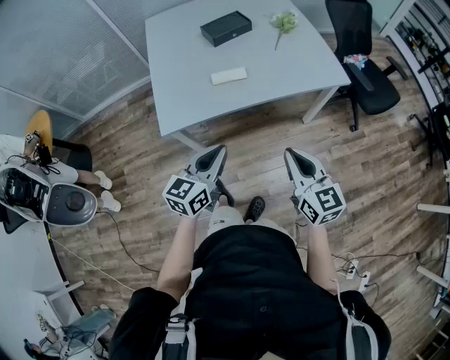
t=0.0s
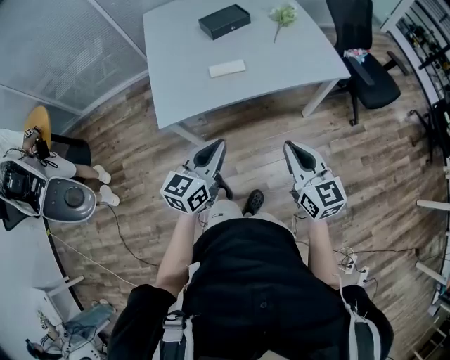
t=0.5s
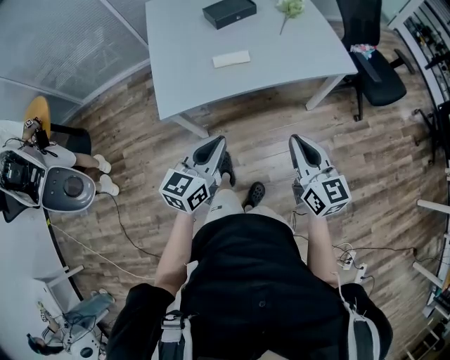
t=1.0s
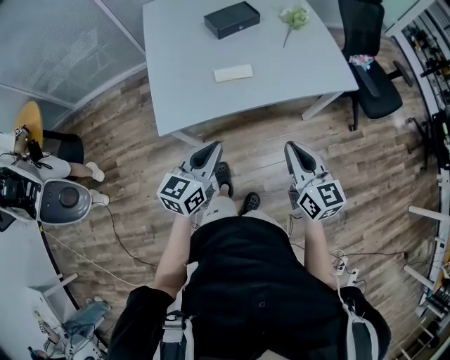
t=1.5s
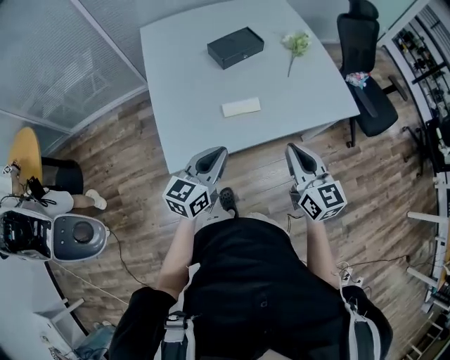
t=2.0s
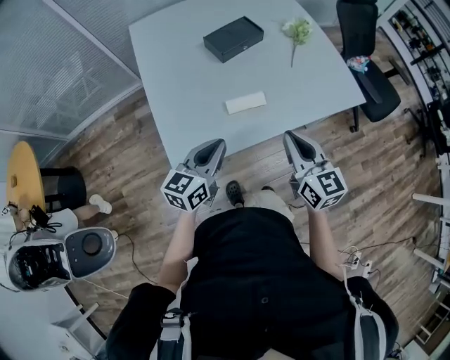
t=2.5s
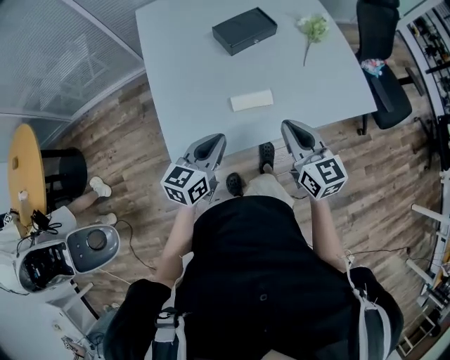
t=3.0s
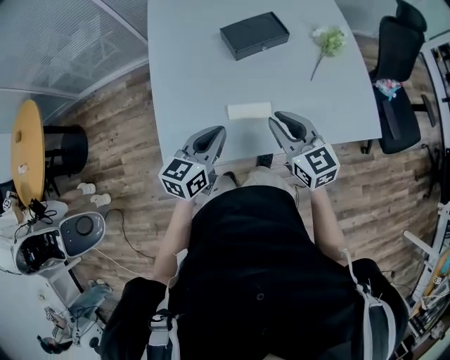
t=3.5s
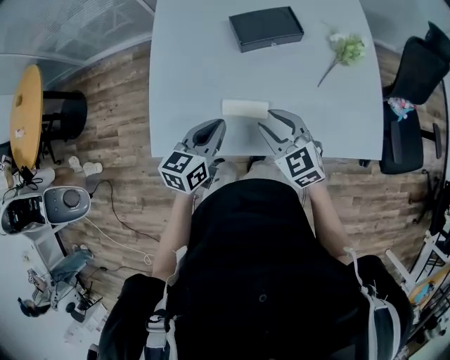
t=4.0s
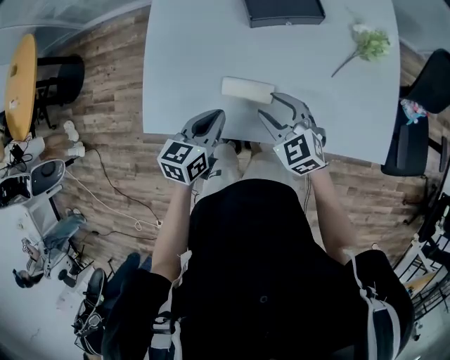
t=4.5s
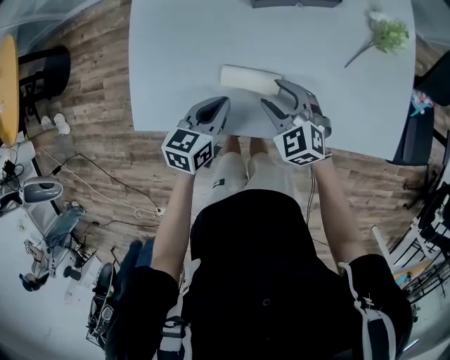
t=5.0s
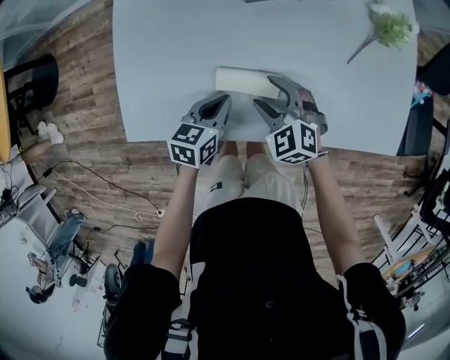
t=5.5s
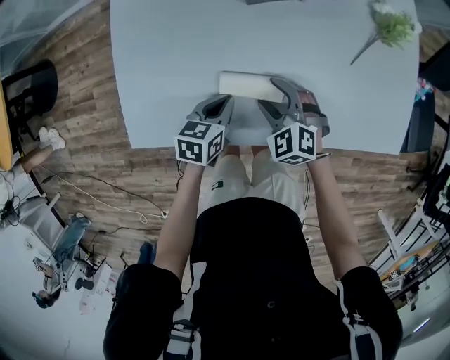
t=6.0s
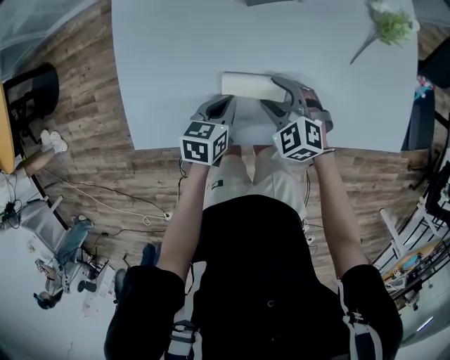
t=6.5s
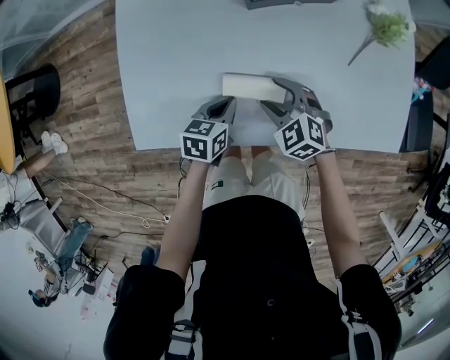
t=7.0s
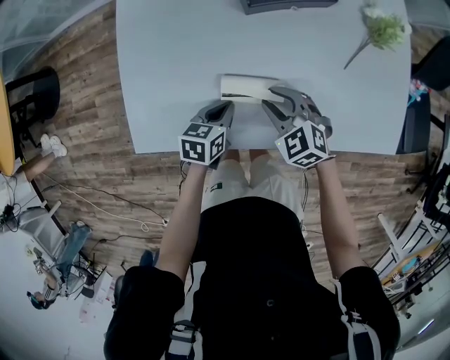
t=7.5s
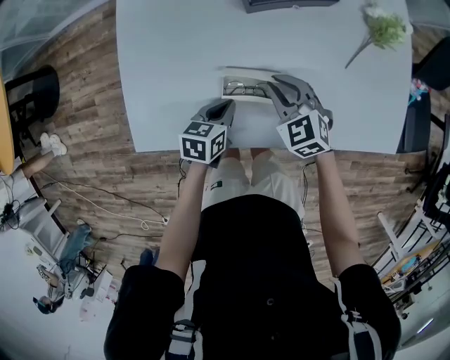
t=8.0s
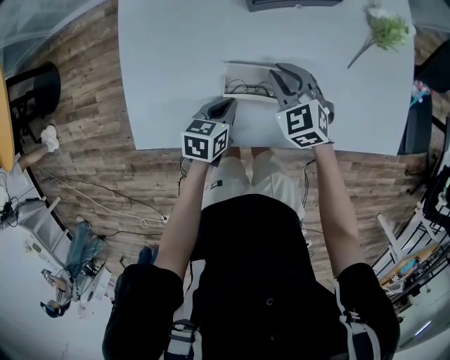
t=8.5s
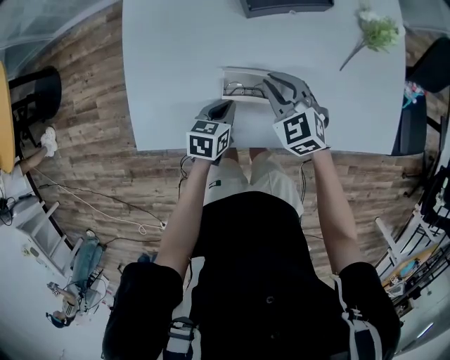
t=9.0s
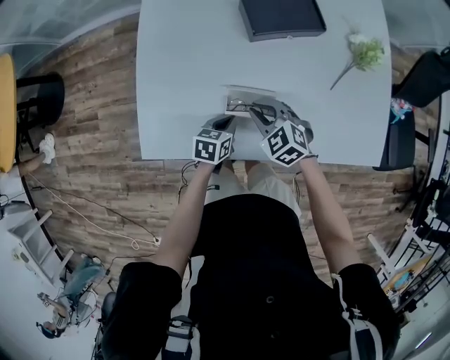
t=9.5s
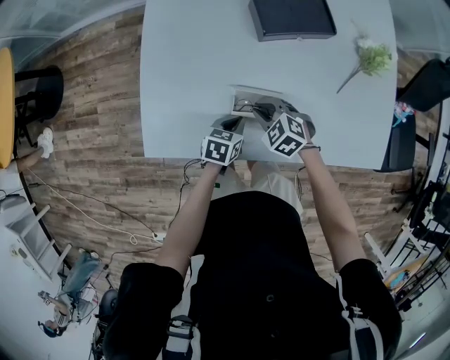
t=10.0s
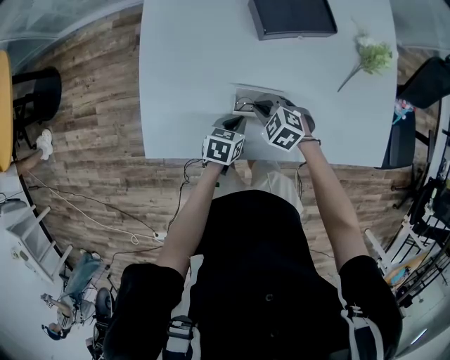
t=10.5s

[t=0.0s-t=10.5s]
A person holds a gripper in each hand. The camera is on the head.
t=0.0s to t=2.0s: The two grippers go some 25 cm forward and to the left.
t=2.0s to t=4.0s: The left gripper changes place by some 25 cm, and swivels roughly 20 degrees; the right gripper moves about 30 cm, swivels some 50 degrees, and opens.
t=4.0s to t=6.5s: Both grippers travel together downward, some 20 cm. The right gripper changes its angle by about 30 degrees, and opens; the left gripper turns by some 20 degrees.
t=6.5s to t=8.5s: The right gripper moves forward, some 5 cm, and closes its fingers.
t=8.5s to t=10.5s: The right gripper moves to the left and backward, about 10 cm, and turns by approximately 30 degrees.

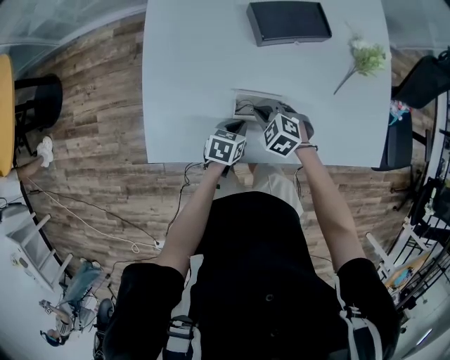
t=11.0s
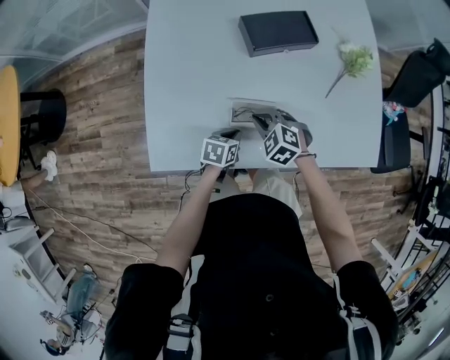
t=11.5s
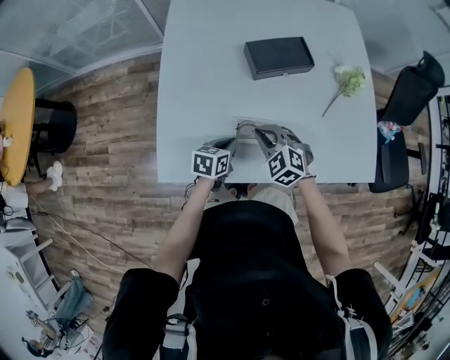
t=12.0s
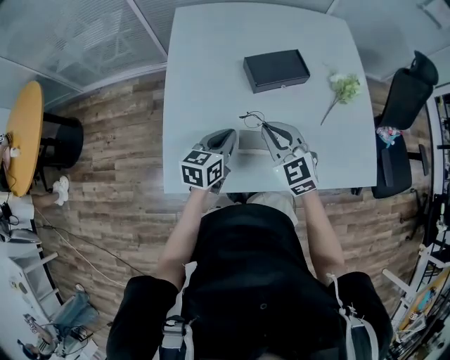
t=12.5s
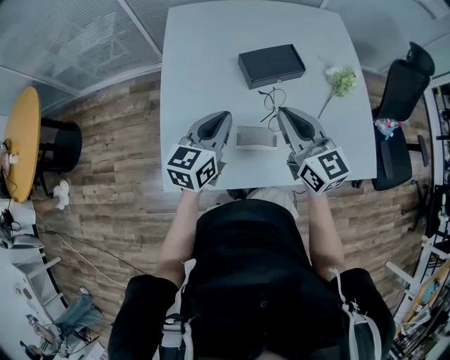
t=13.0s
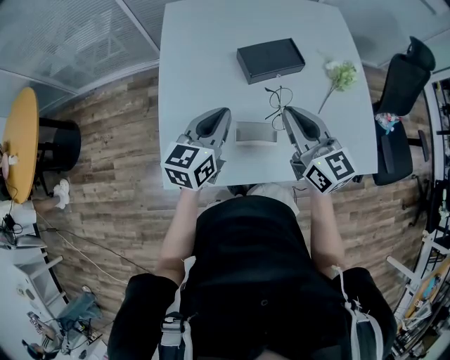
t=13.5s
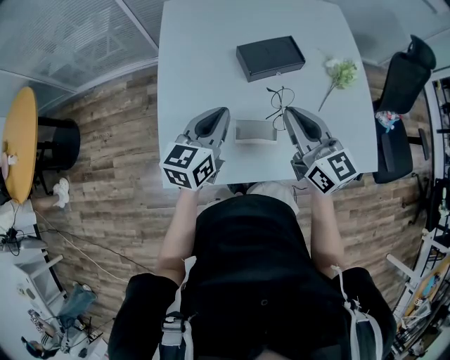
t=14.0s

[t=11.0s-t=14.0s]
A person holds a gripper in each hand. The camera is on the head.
t=11.0s to t=12.5s: The two grippers go some 25 cm upward. The right gripper tips its fingers upward by approximately 40 degrees; the left gripper rotates roughly 30 degrees.
t=12.5s to t=14.0s: The left gripper travels upward by approximately 10 cm, while the right gripper travels upward and to the right by about 10 cm, and changes its angle by some 40 degrees.

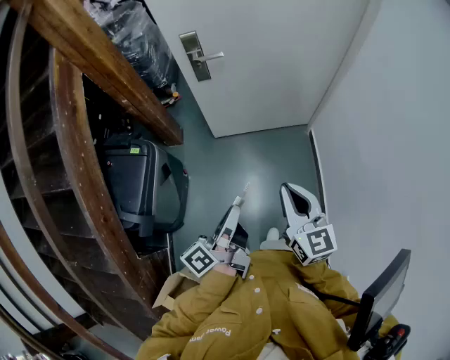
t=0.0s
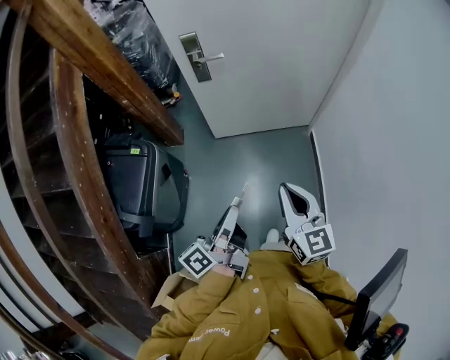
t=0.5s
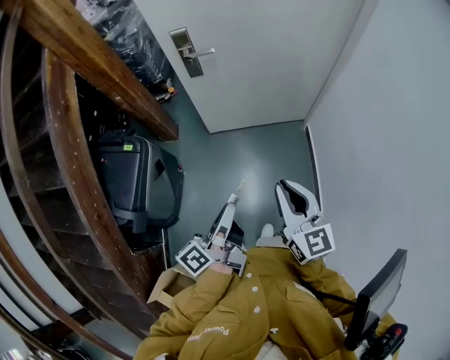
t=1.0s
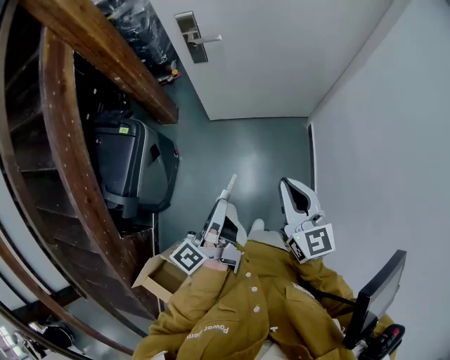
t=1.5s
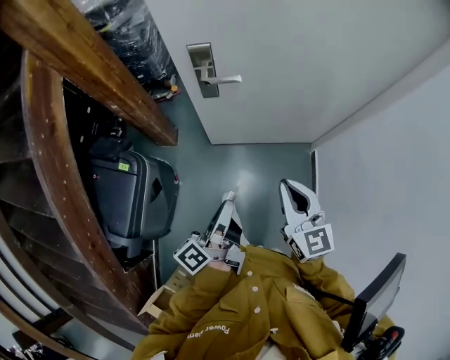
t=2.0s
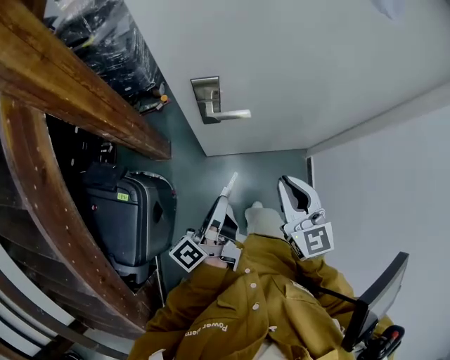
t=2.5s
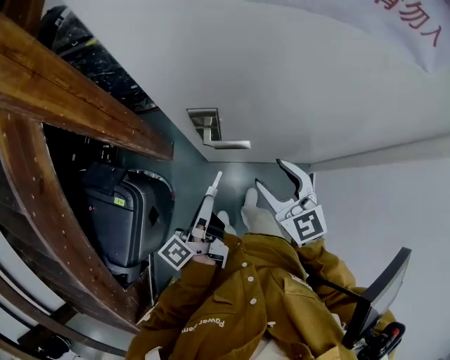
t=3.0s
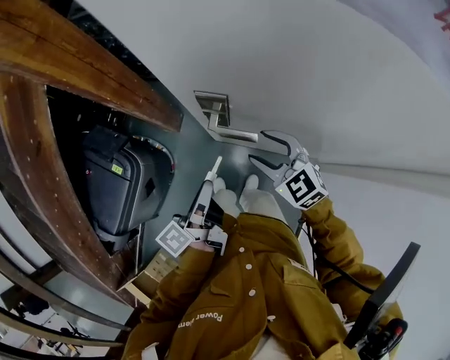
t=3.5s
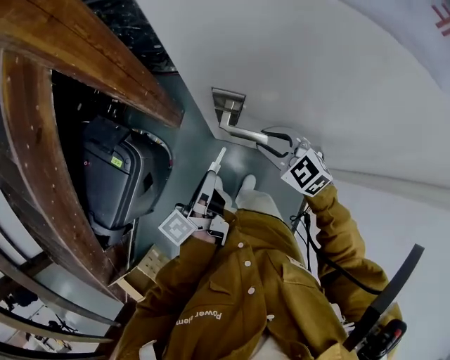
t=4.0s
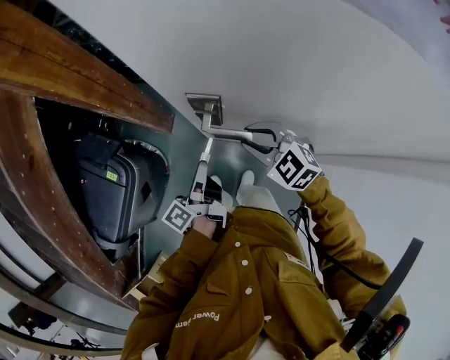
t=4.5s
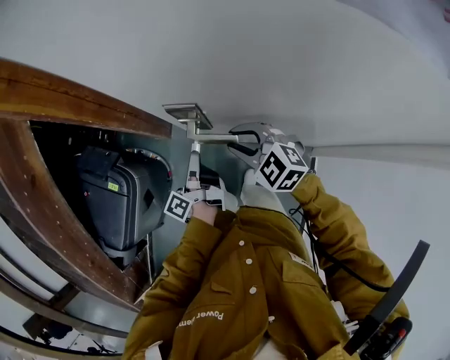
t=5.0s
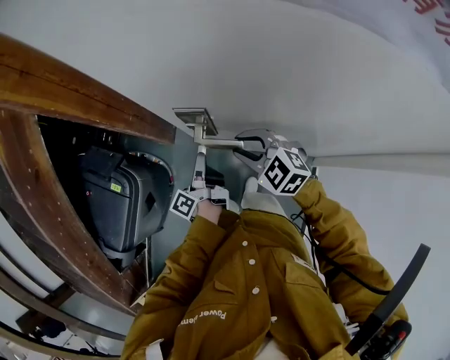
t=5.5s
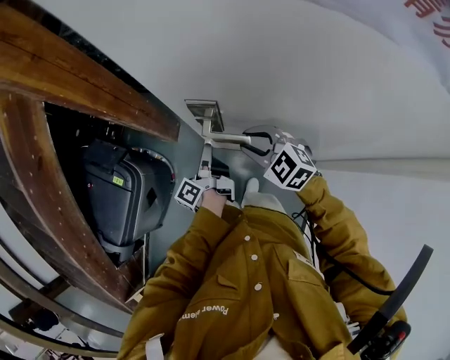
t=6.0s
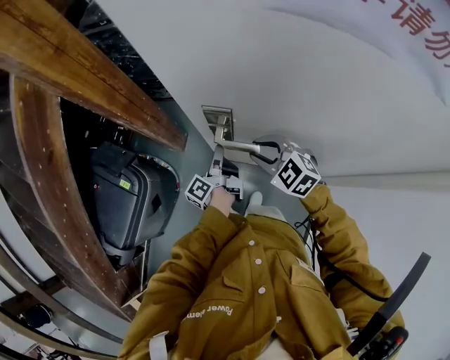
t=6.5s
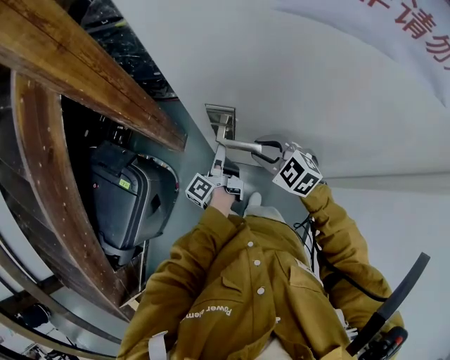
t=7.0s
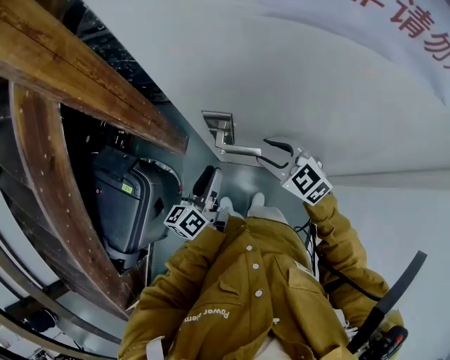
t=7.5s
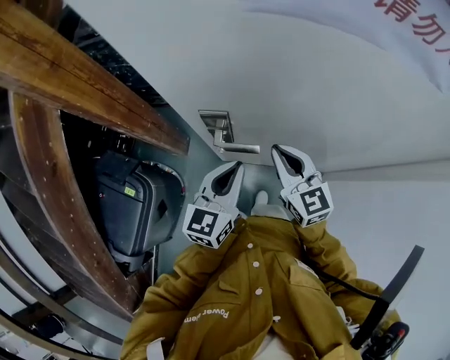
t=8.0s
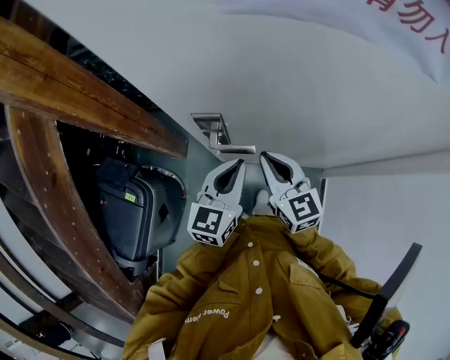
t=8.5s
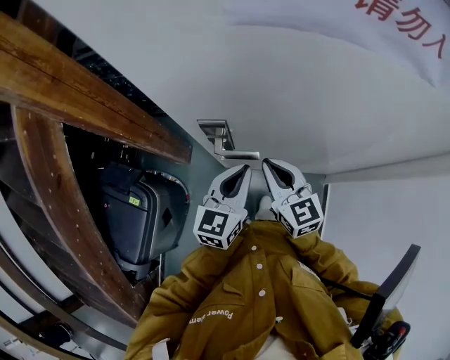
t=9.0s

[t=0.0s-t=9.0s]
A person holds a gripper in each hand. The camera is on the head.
t=0.0s to t=2.0s: The right gripper ends up roughly 25 cm from where it was.
t=2.0s to t=4.5s: The right gripper moves about 35 cm, turns by approximately 60 degrees, and opens its fingers.
t=7.0s to t=9.0s: The right gripper travels upward by some 5 cm, turns by some 50 degrees, and closes its fingers.

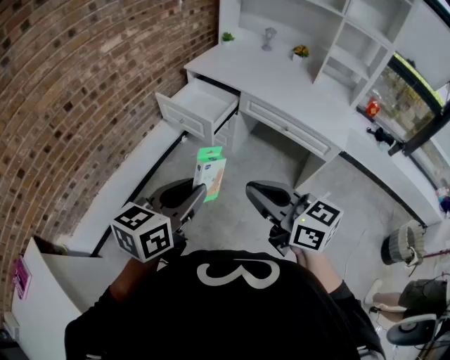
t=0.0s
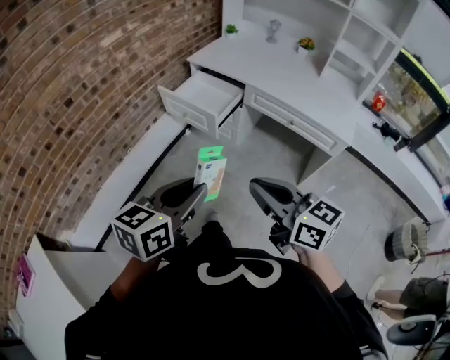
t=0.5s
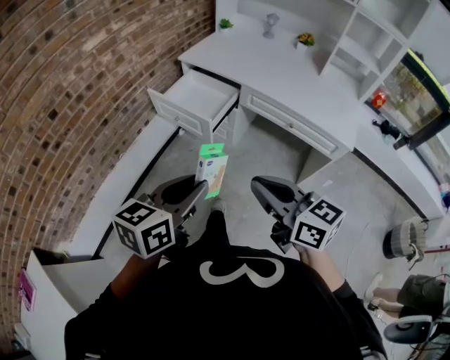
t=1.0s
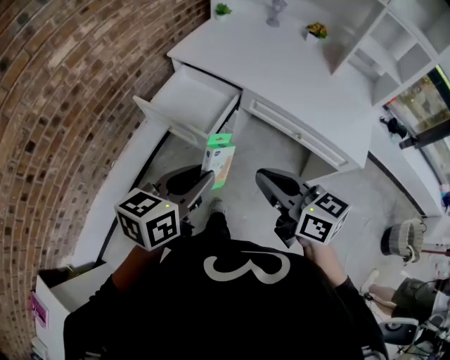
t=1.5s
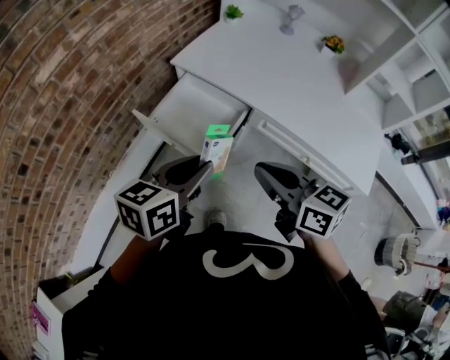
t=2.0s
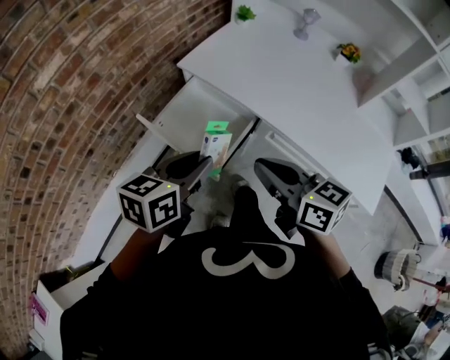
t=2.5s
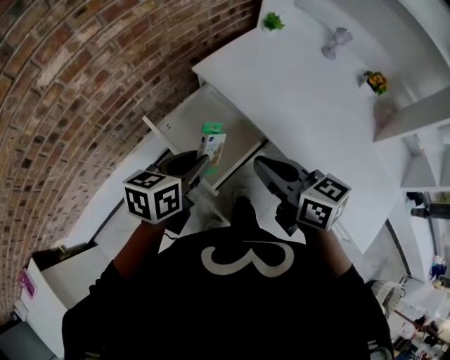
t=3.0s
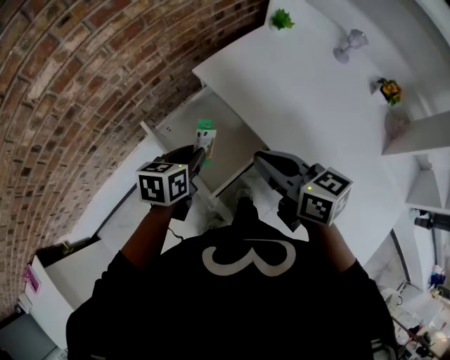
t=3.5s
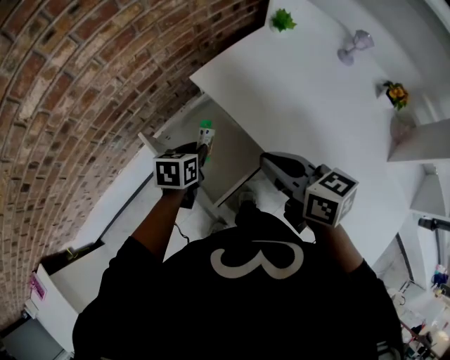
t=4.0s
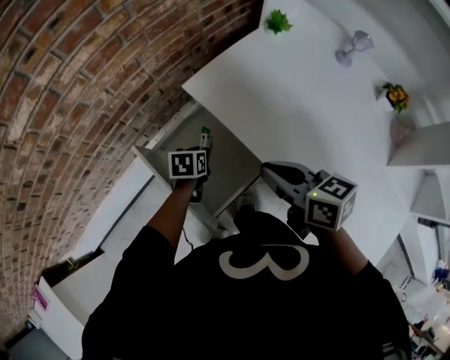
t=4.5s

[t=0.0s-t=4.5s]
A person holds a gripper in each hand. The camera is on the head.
t=0.0s to t=2.0s: The two grippers go about 35 cm forward.
t=2.0s to t=4.5s: The right gripper shifts approximately 25 cm forward, and turns by approximately 20 degrees; the left gripper goes some 40 cm forward and downward, and tilts its fingers approximately 40 degrees downward.
